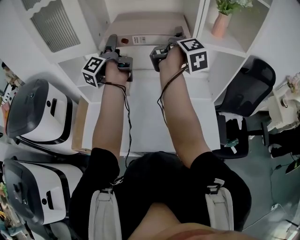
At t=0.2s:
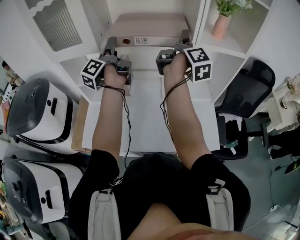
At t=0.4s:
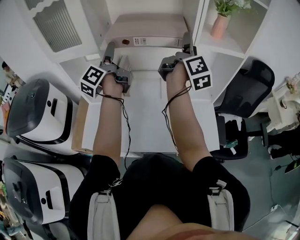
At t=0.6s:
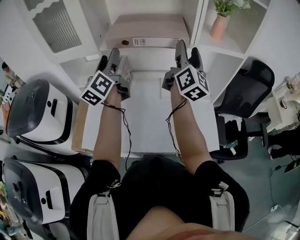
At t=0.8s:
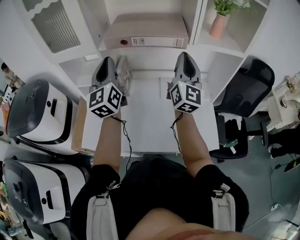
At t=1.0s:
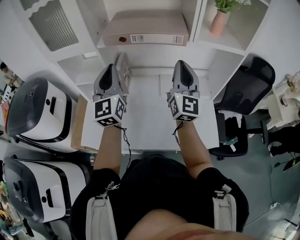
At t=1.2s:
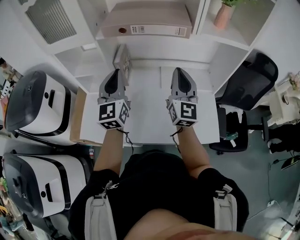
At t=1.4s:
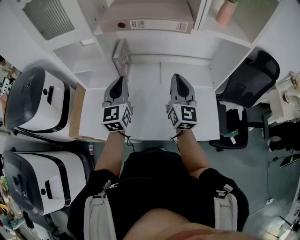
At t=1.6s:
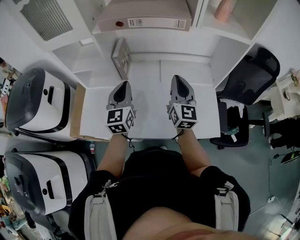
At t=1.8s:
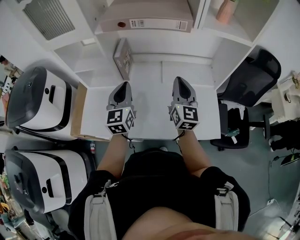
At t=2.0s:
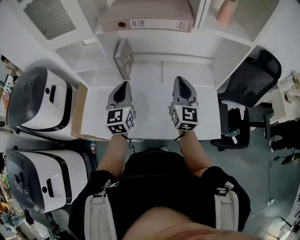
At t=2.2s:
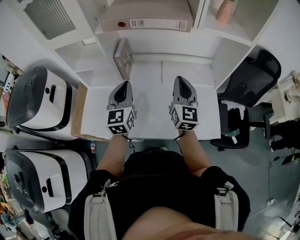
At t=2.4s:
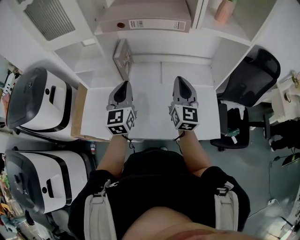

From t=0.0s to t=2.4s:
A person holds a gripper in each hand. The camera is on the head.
From t=0.0s to t=1.2s: The two grippers go roughly 15 cm backward and downward. The left gripper rolls clockwise, seen from behind, by approximately 80 degrees, and closes up, while the right gripper rotates around the line of its fingers by approximately 70 degrees, counterclockwise from behind, and closes up.
From t=1.2s to t=2.4s: The grippers both shift downward by about 5 cm.

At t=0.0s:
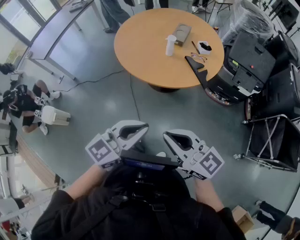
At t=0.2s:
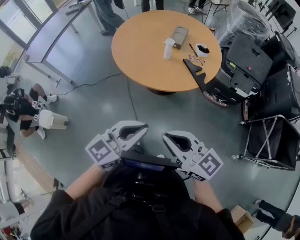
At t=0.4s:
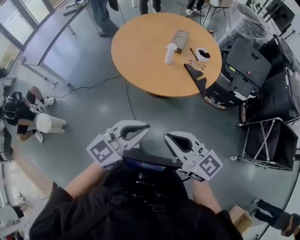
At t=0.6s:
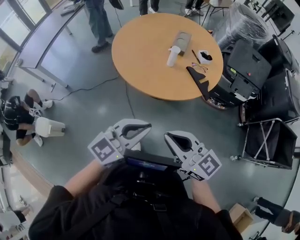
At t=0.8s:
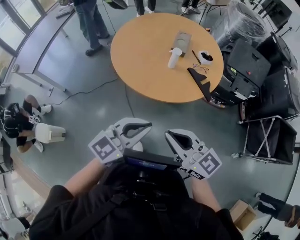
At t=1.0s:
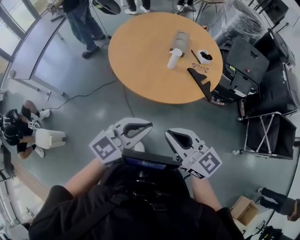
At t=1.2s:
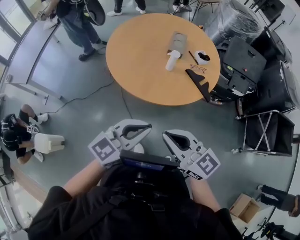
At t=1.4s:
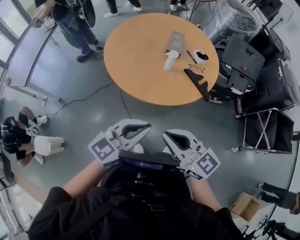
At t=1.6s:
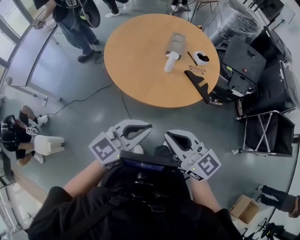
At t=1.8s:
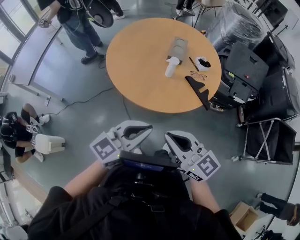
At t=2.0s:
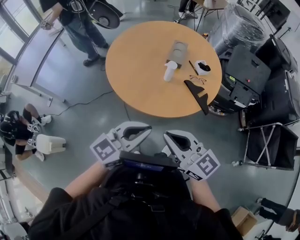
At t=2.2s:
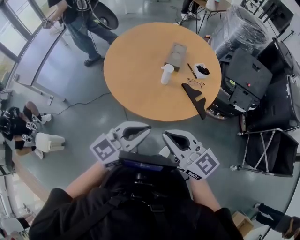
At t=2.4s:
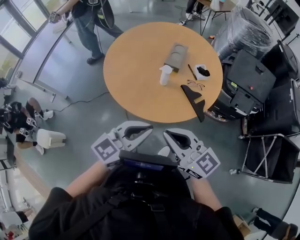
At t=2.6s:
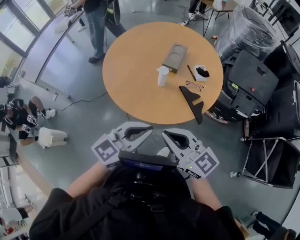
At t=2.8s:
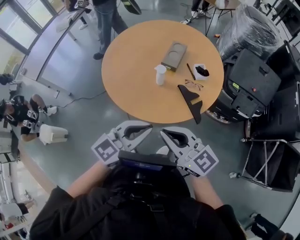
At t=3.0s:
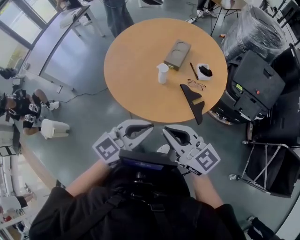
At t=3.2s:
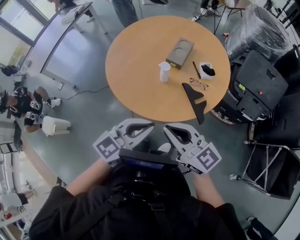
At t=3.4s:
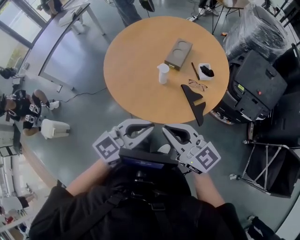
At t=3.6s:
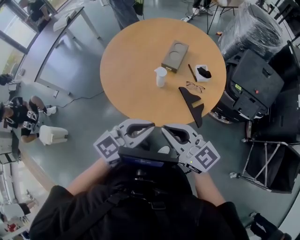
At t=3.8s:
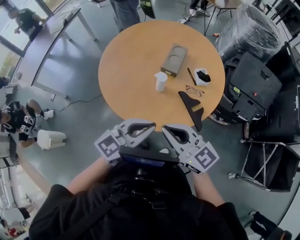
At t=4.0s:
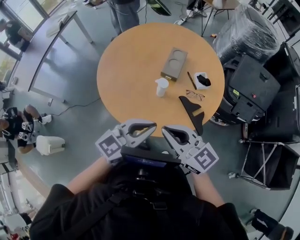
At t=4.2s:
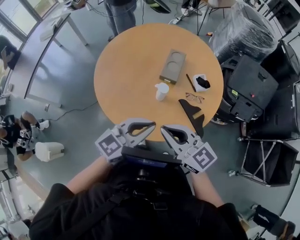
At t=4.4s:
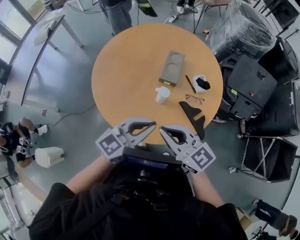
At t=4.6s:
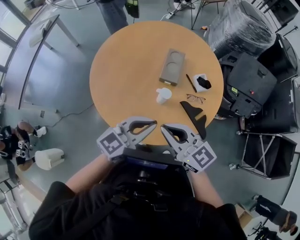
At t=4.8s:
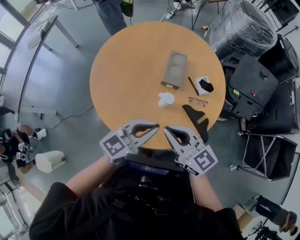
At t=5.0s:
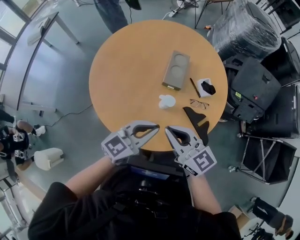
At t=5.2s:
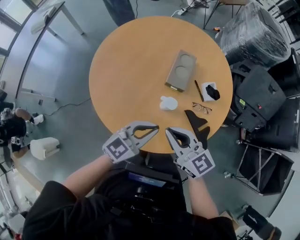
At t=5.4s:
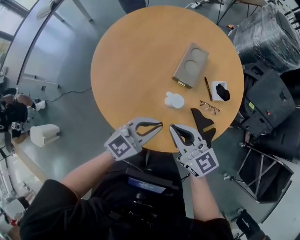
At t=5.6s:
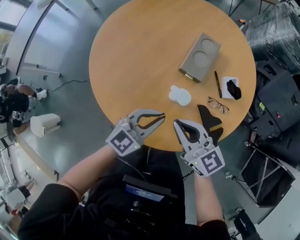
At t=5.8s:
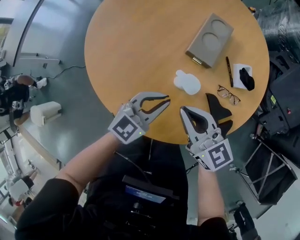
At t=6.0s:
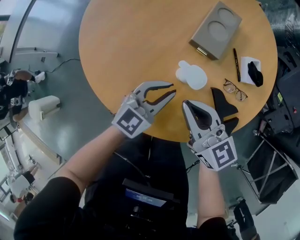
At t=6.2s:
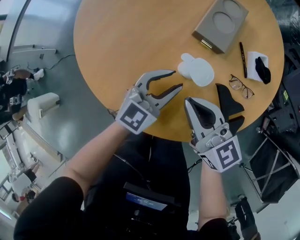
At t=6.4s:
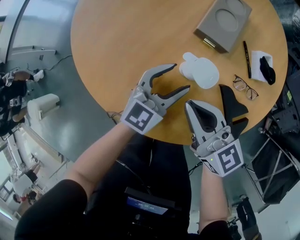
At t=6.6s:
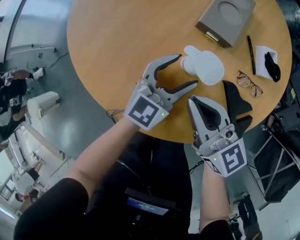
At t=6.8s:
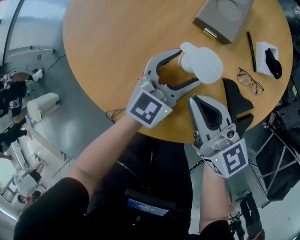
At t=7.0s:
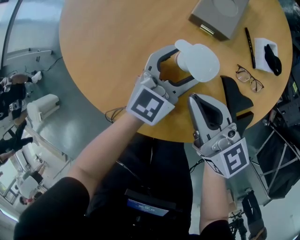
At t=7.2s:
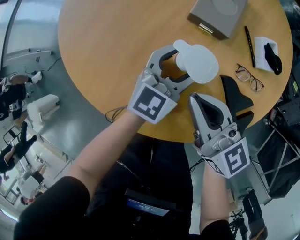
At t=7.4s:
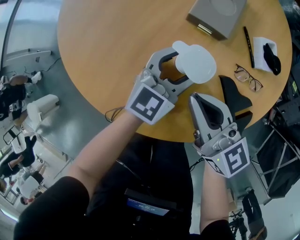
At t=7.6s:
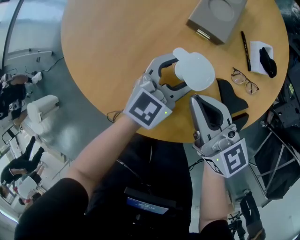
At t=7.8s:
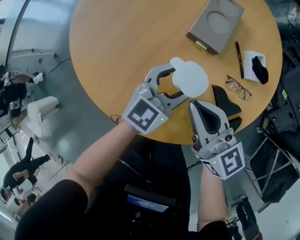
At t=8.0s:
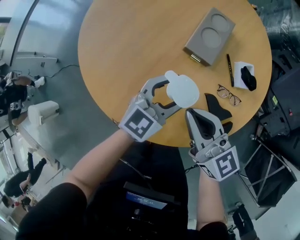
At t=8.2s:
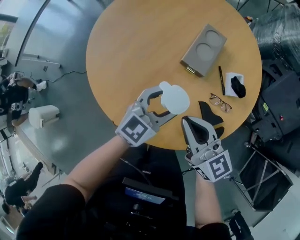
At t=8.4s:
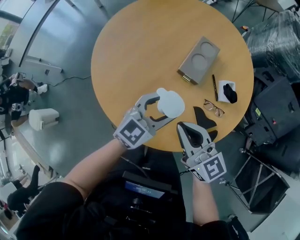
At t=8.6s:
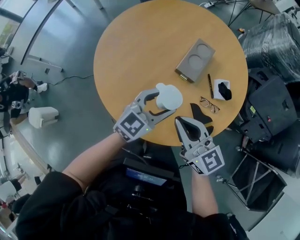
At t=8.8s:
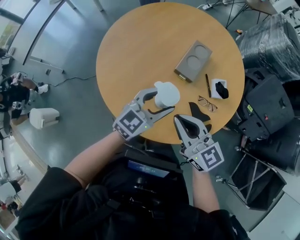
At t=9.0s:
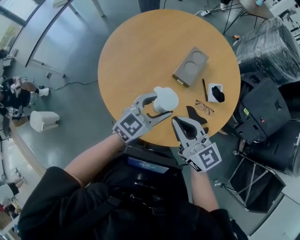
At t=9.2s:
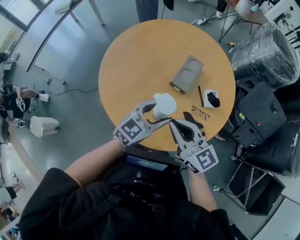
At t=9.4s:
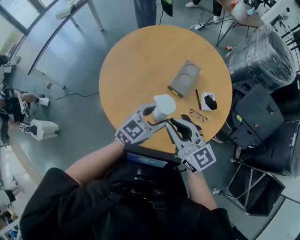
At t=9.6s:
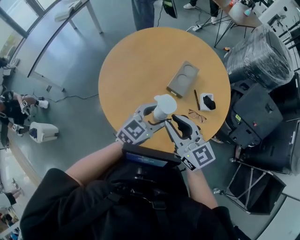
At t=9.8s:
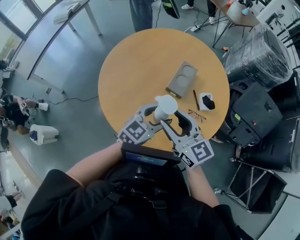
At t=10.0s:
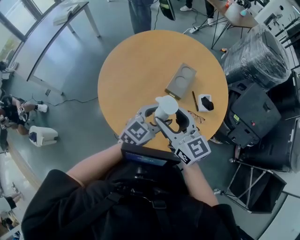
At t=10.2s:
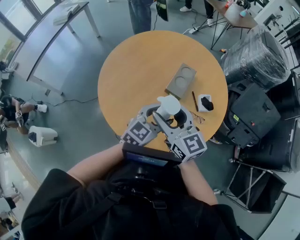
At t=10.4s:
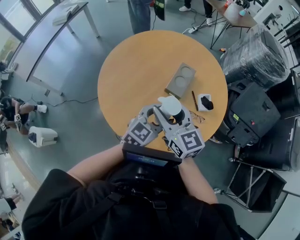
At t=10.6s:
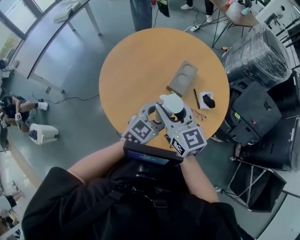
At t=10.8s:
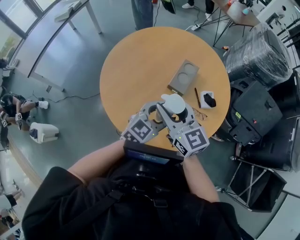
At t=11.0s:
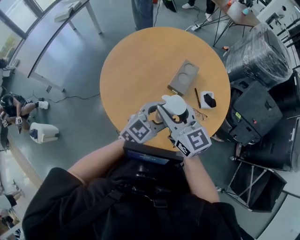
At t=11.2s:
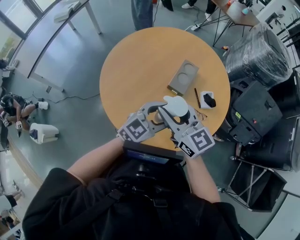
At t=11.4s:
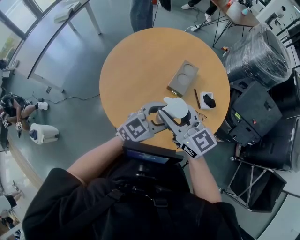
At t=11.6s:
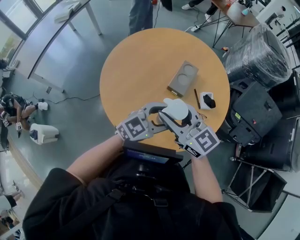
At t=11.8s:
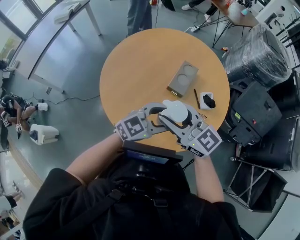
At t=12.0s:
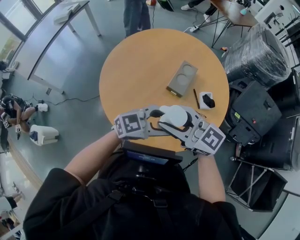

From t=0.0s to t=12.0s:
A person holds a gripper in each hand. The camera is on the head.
From t=0.0s to t=1.6s: Both grippers move forward and to the left, roughly 30 cm.
From t=1.6s to t=3.0s: The grippers both shift to the right and forward by some 30 cm.
From t=3.0s to t=4.4s: Both grippers move forward and to the left, some 25 cm.
From t=4.4s to t=6.0s: The two grippers go approximately 40 cm downward and forward. The left gripper swivels approximately 20 degrees.
From t=6.0s to t=7.6s: The right gripper travels downward by about 5 cm; the left gripper goes about 10 cm to the right, downward and forward, and opens up.
From t=7.6s to t=9.0s: The two grippers go about 35 cm upward.
From t=9.0s to t=10.4s: Both grippers move upward, roughly 5 cm. The right gripper opens its fingers.
From t=10.4s to t=12.0s: The right gripper changes place by roughly 5 cm, and rotates about 30 degrees; the left gripper ends up some 5 cm from where it was, and turns by roughly 30 degrees.

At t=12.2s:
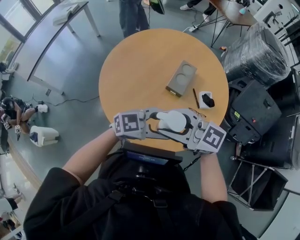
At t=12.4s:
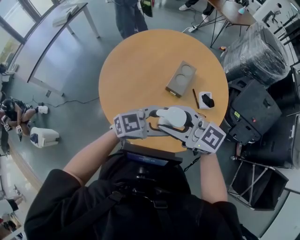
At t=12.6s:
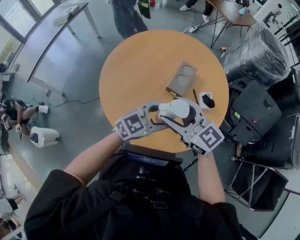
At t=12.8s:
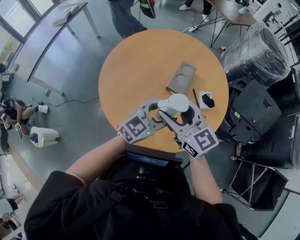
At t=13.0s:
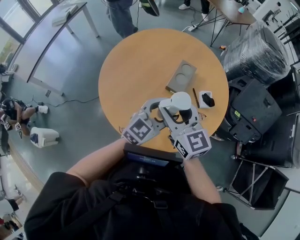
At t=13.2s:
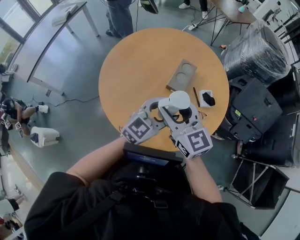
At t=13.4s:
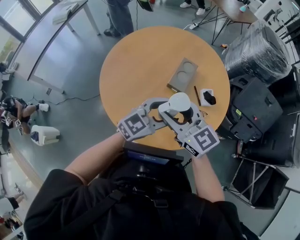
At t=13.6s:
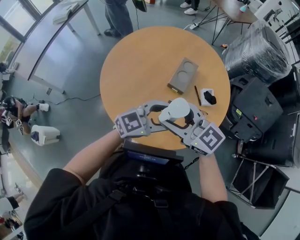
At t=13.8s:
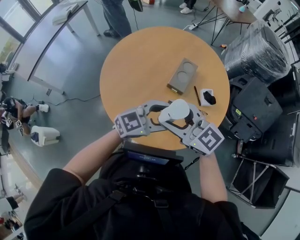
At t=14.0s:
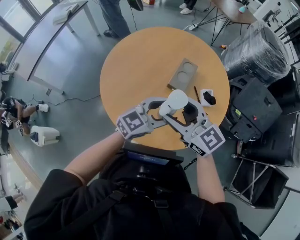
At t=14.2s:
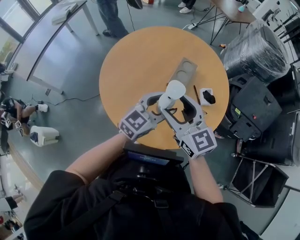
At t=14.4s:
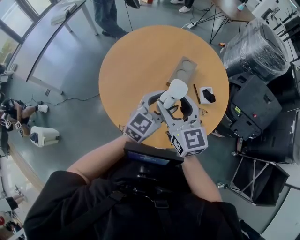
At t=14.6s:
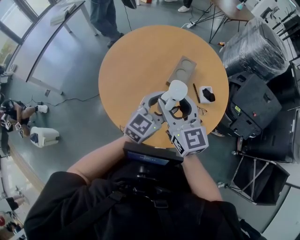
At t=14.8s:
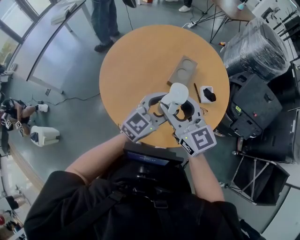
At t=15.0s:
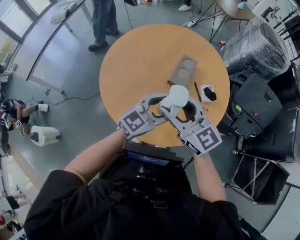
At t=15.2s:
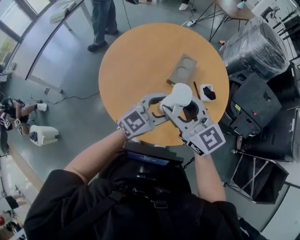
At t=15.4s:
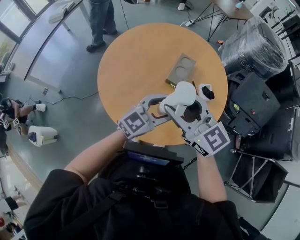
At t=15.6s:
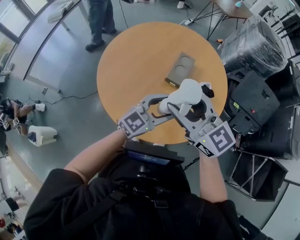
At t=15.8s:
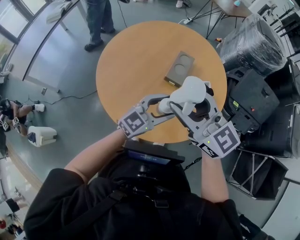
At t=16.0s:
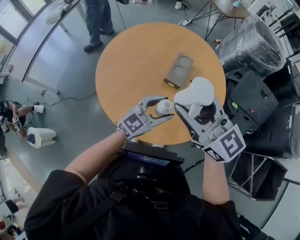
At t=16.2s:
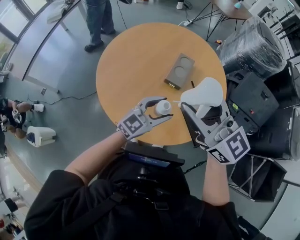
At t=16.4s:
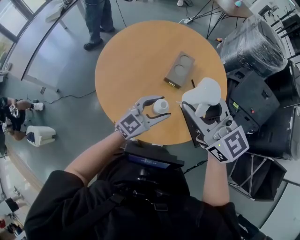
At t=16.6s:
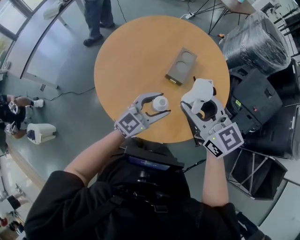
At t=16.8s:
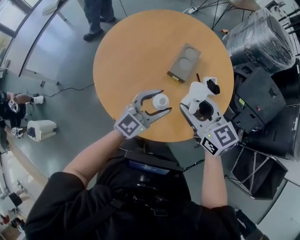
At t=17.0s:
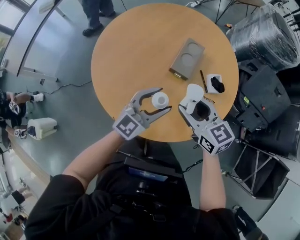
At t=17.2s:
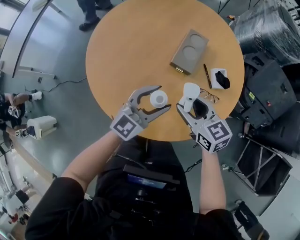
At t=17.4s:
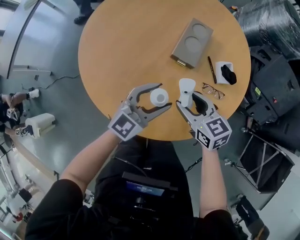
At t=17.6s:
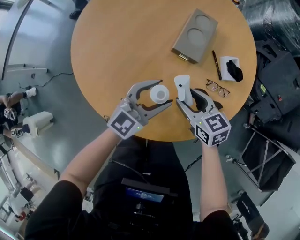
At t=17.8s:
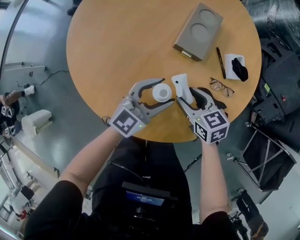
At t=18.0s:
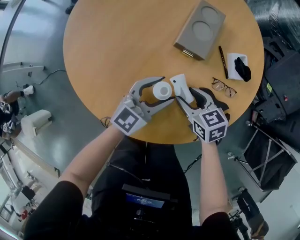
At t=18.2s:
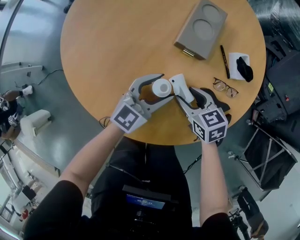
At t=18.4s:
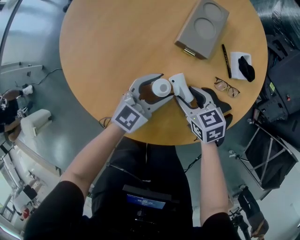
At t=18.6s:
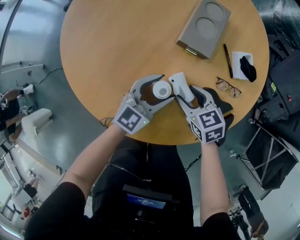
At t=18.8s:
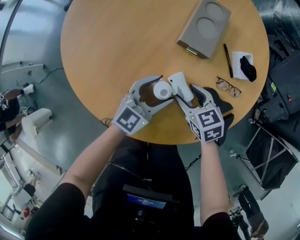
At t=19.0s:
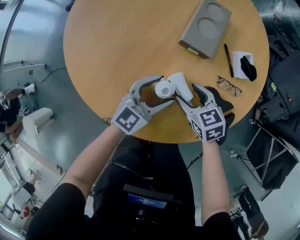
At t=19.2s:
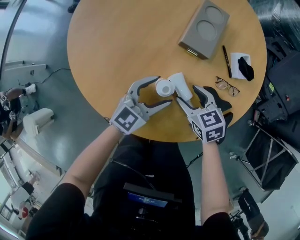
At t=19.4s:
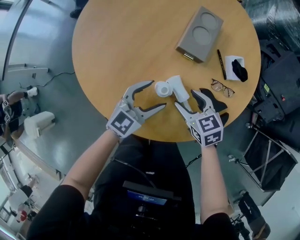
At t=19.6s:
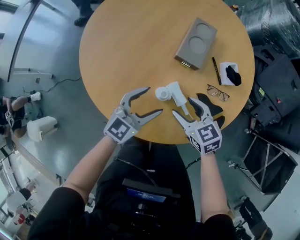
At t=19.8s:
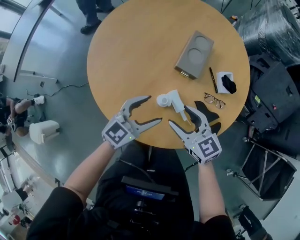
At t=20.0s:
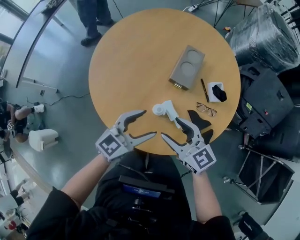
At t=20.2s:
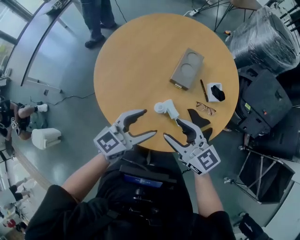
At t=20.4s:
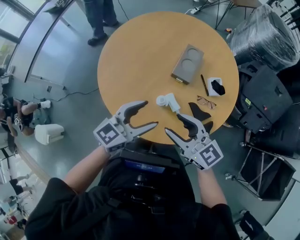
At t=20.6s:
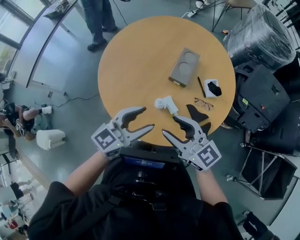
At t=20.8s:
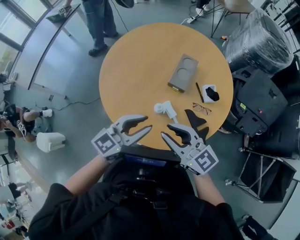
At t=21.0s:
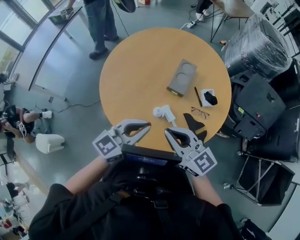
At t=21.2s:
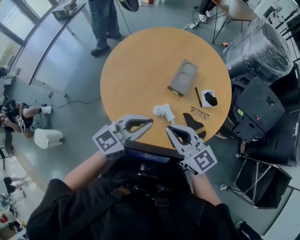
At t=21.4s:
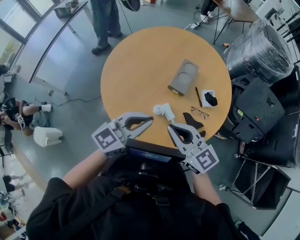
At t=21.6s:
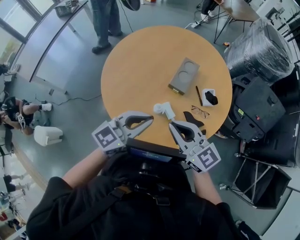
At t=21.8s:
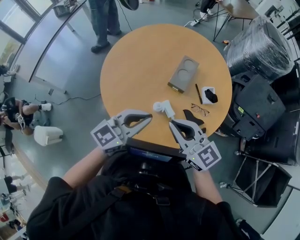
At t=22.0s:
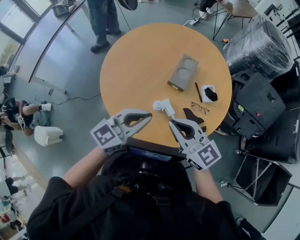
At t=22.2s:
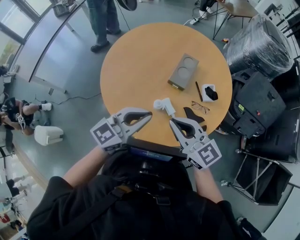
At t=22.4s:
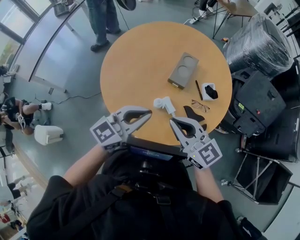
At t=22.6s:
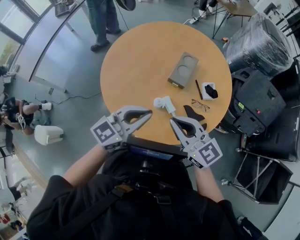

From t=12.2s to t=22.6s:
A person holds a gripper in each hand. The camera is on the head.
From t=15.2s to t=16.6s: The left gripper heads downward, covering approximately 5 cm. Meanwhile the right gripper heads to the right, covering approximately 5 cm, and reaches some 10 cm upward, then returns.
From t=16.6s to t=18.2s: The right gripper travels downward by about 50 cm, and tips its fingers downward by approximately 30 degrees. Meanwhile the left gripper moves downward, roughly 35 cm.
From t=18.2s to t=19.6s: The left gripper is displaced upward, backward and to the left by some 15 cm, while the right gripper travels upward by some 15 cm.
From t=19.6s to t=21.2s: Both grippers travel together upward, about 35 cm. The left gripper closes its fingers. The right gripper tilts its fingers some 30 degrees upward, and closes.
From t=21.2s to t=22.6s: The grippers stay close to where they were, moving slightly.
